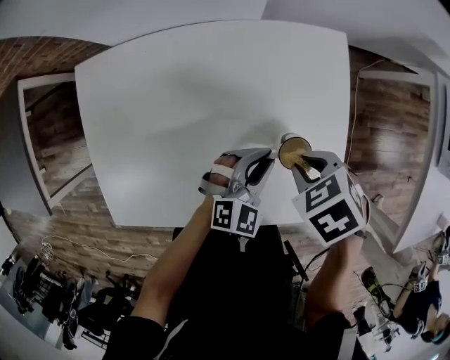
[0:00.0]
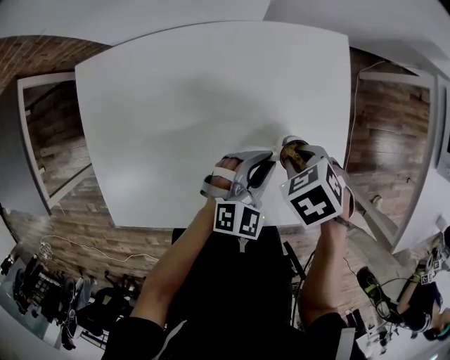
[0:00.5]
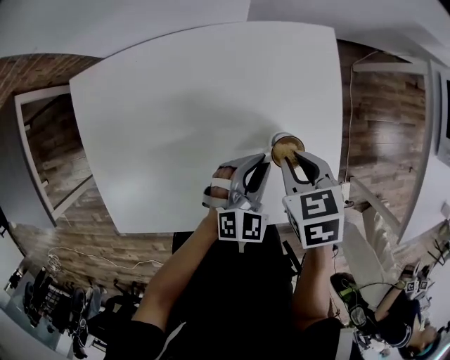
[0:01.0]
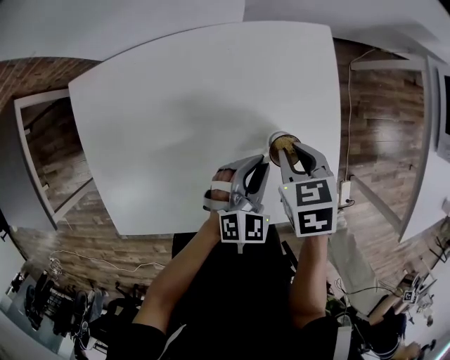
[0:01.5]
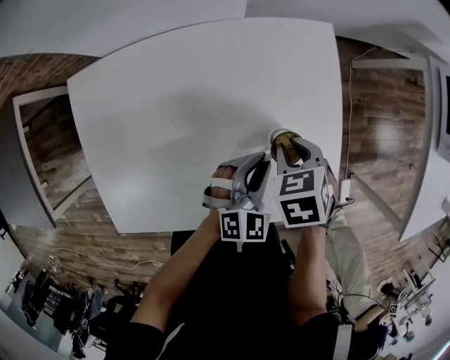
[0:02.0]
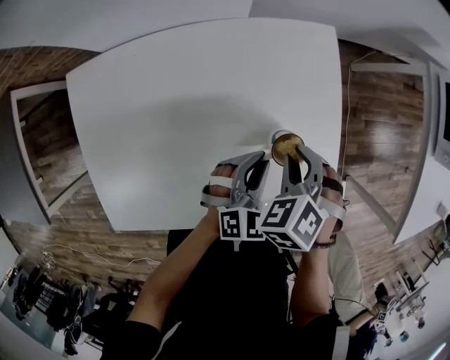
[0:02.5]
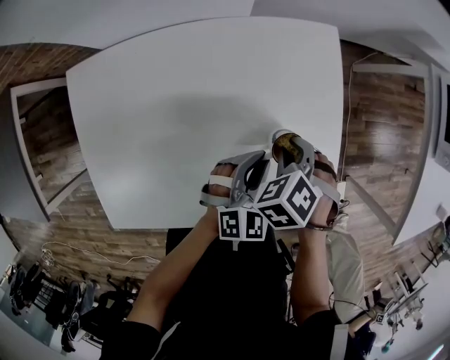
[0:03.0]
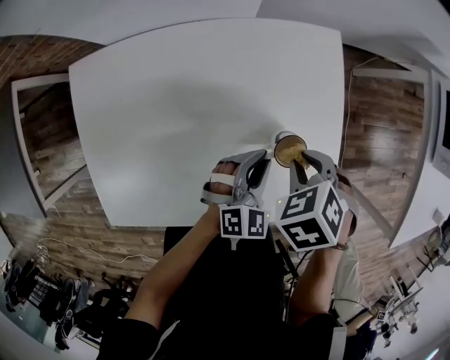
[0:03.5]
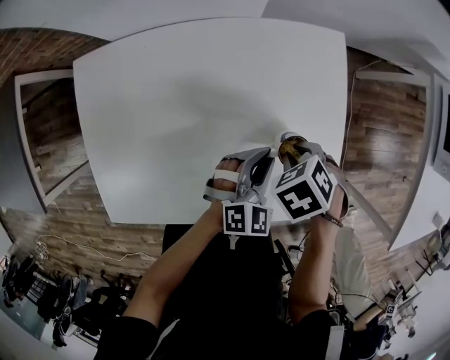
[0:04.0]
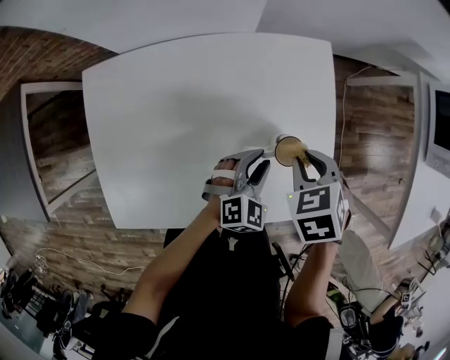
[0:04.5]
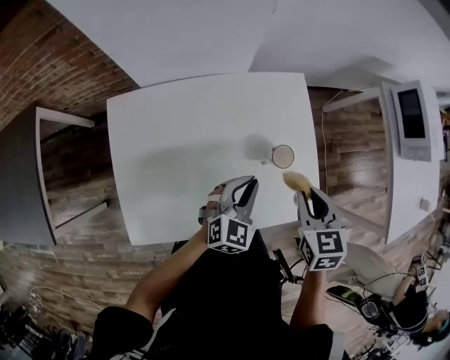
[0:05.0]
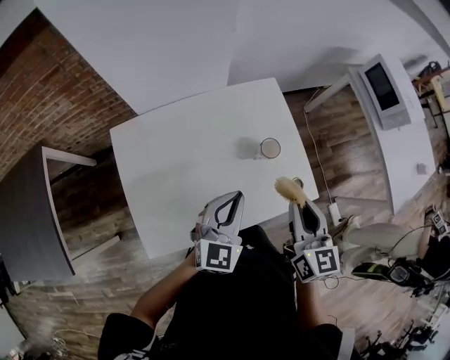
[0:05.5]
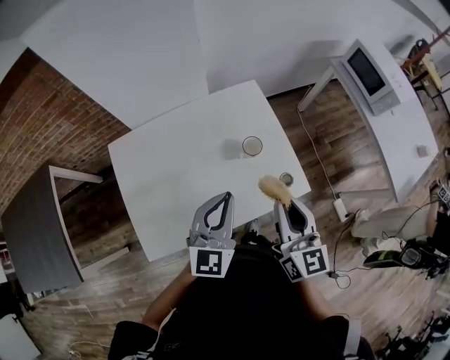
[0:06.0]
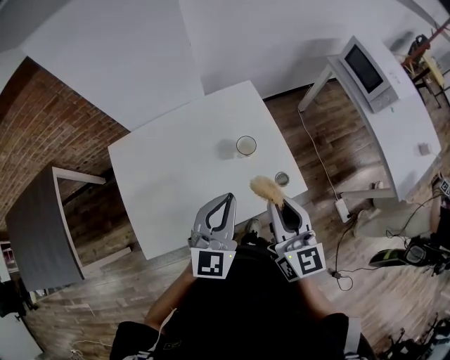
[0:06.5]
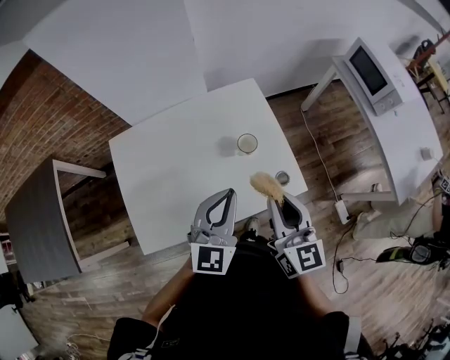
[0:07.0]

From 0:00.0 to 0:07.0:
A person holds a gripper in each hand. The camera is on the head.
From 0:00.0 to 0:02.0: The right gripper turns by approximately 30 degrees.
From 0:02.0 to 0:03.5: The right gripper swivels roughly 20 degrees.
From 0:03.5 to 0:05.0: Both grippers travel together upward, about 10 cm. The right gripper angles its fingers upward, by about 40 degrees.
From 0:05.0 to 0:07.0: The left gripper moves upward and backward, some 20 cm, and turns by some 20 degrees. The right gripper shifts approximately 15 cm backward and upward, and points its fingers approximately 40 degrees further upward.

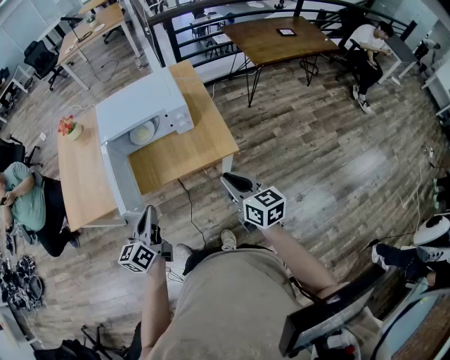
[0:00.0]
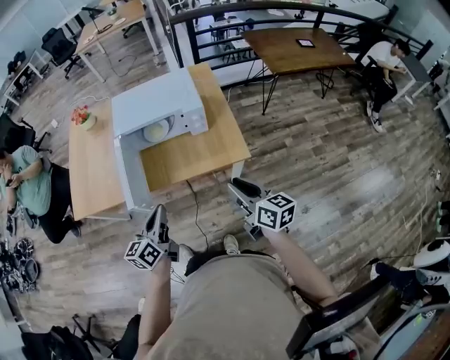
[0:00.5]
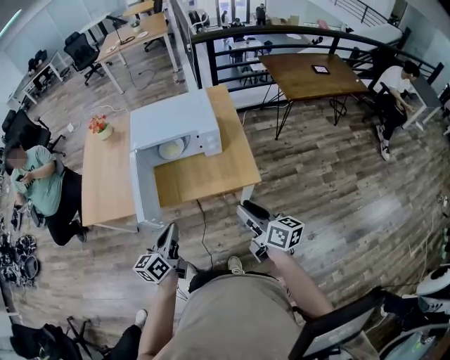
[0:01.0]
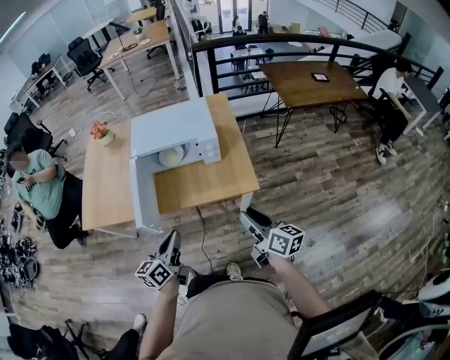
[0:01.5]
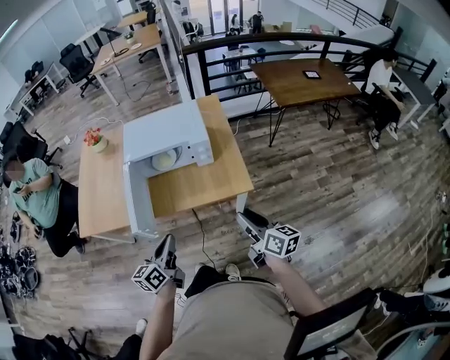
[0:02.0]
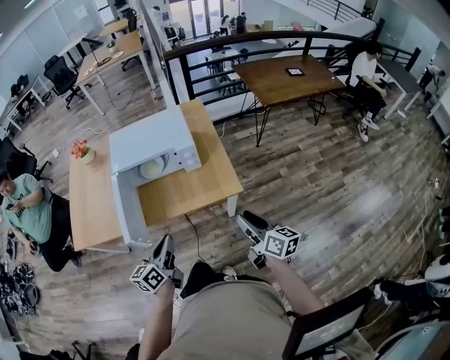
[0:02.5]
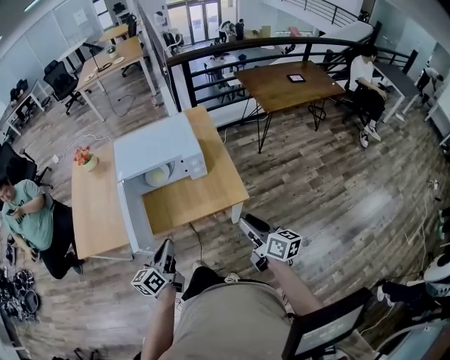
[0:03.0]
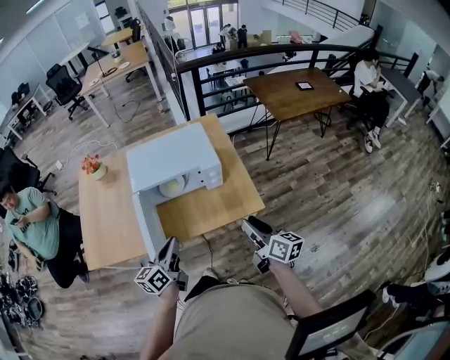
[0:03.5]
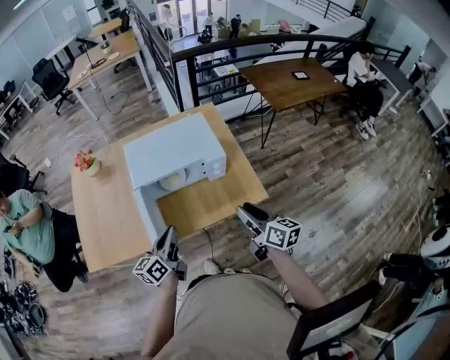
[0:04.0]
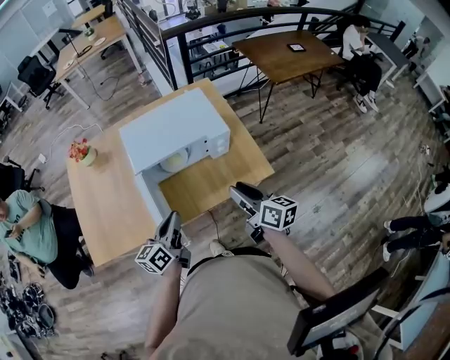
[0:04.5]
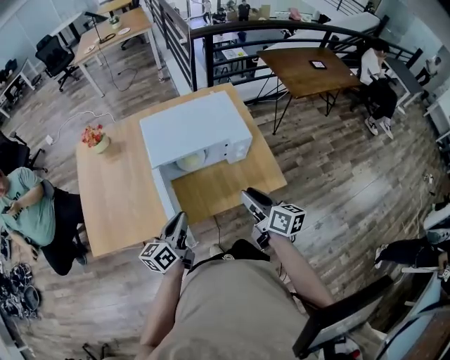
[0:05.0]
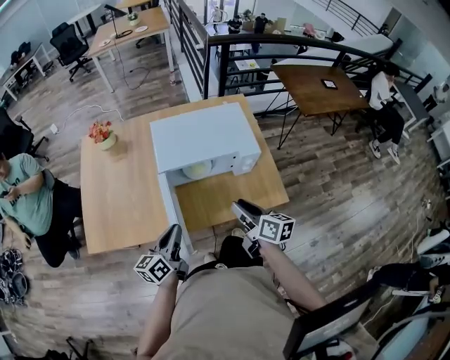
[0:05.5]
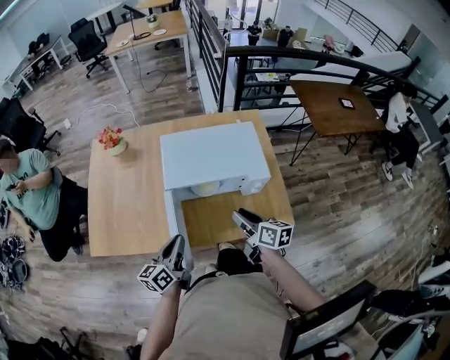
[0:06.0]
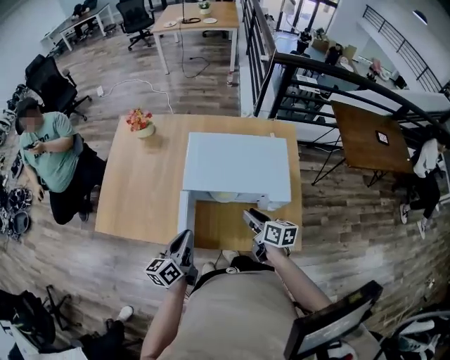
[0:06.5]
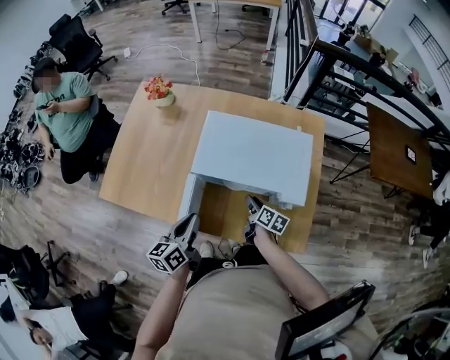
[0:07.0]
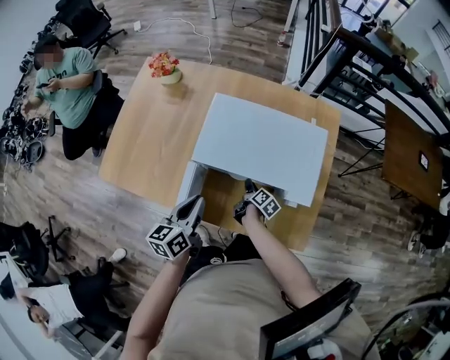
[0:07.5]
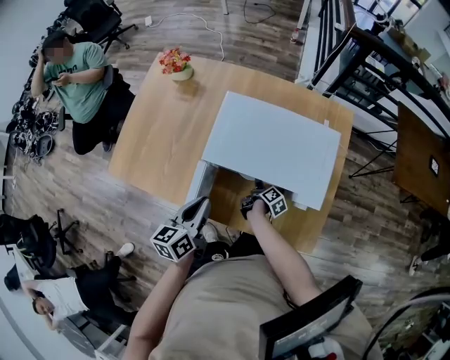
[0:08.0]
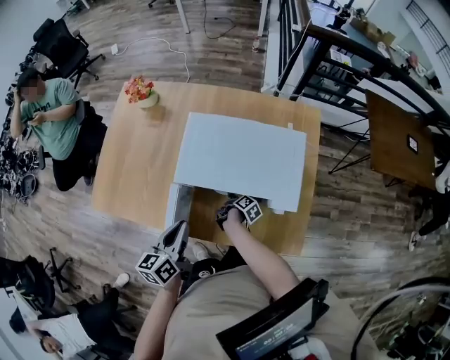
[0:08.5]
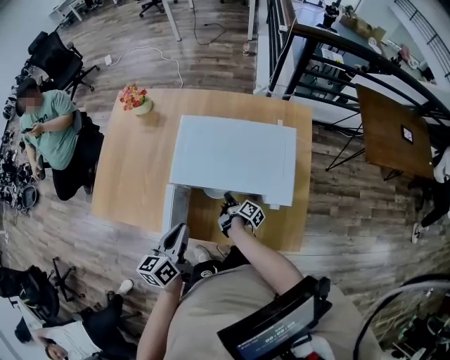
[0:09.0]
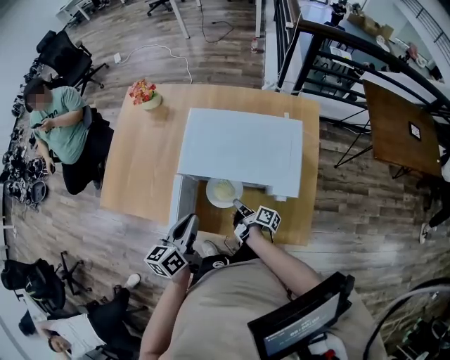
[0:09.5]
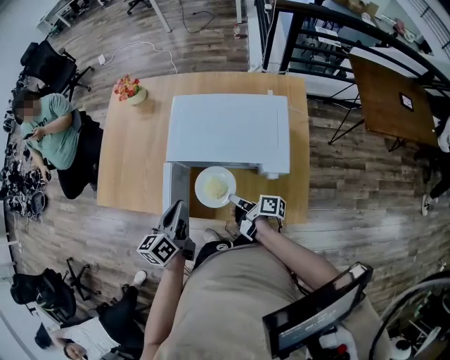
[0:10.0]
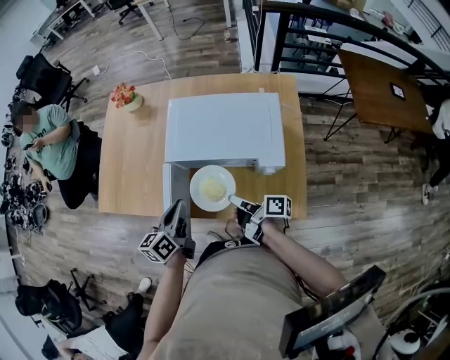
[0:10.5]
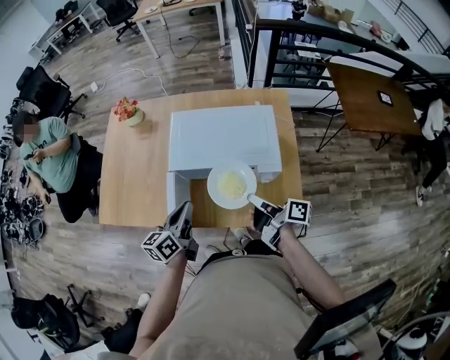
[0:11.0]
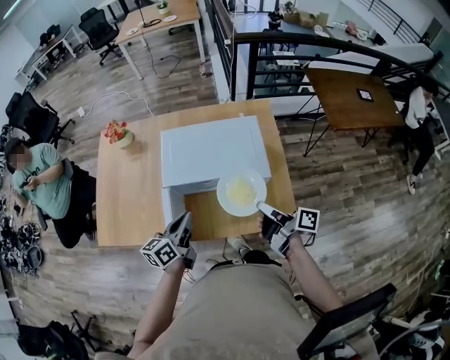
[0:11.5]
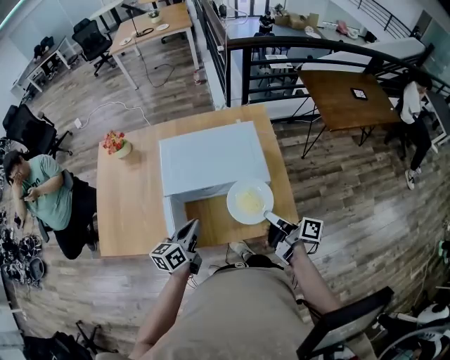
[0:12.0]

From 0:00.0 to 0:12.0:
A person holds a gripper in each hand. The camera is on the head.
From 0:02.0 to 0:04.0: The left gripper shifts about 20 cm forward and to the left. The right gripper shifts some 15 cm to the left and forward.
From 0:04.0 to 0:06.0: The left gripper shifts about 10 cm to the left, while the right gripper shifts approximately 20 cm to the left, forward and downward.
From 0:06.0 to 0:08.0: The left gripper goes some 10 cm forward, and turns by roughly 20 degrees; the right gripper travels downward and forward by roughly 35 cm, and rotates roughly 40 degrees.
From 0:08.0 to 0:10.0: The right gripper goes approximately 20 cm upward and backward, swivels roughly 40 degrees, and closes up.
From 0:10.0 to 0:12.0: The right gripper is displaced upward and to the right by about 20 cm, and turns by approximately 30 degrees. The left gripper turns by some 30 degrees.

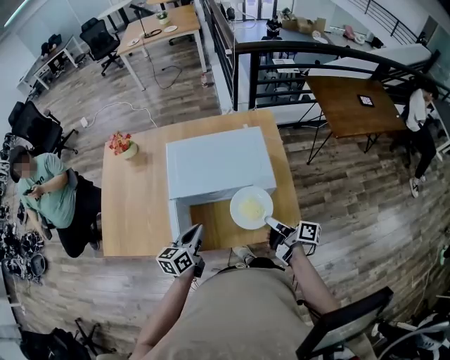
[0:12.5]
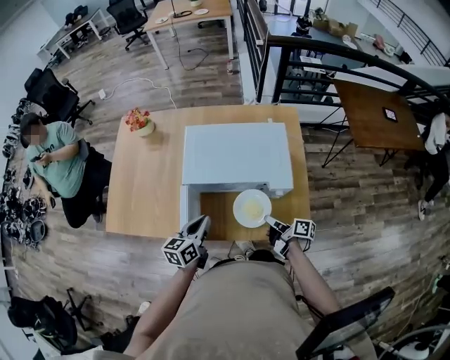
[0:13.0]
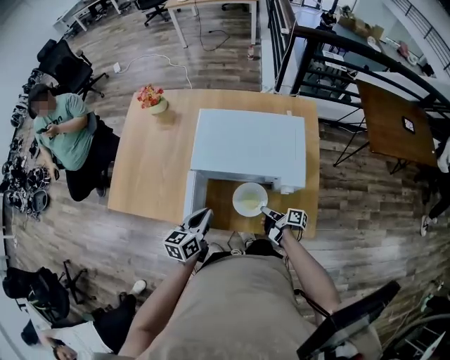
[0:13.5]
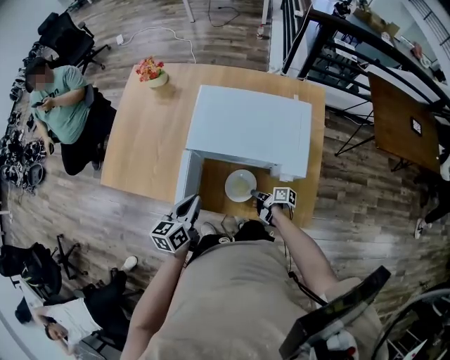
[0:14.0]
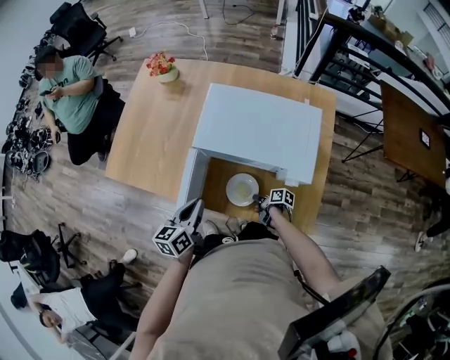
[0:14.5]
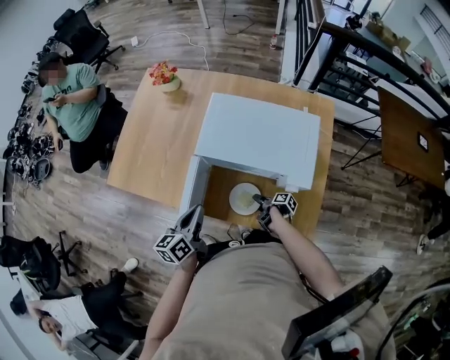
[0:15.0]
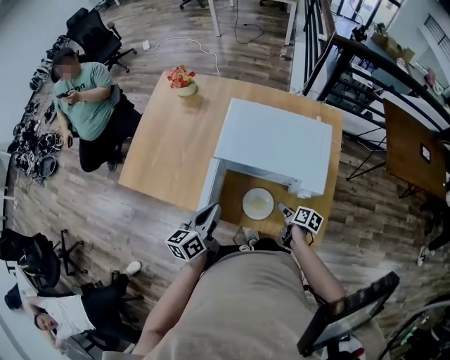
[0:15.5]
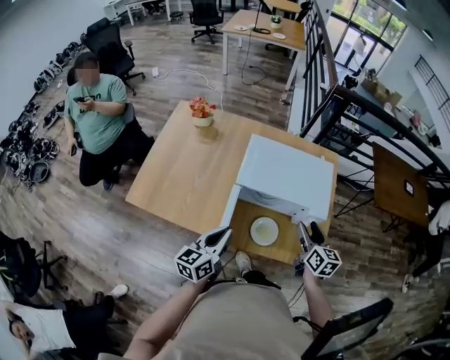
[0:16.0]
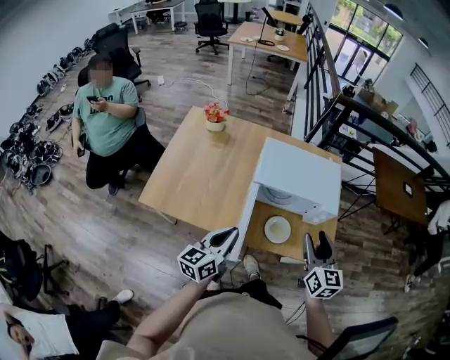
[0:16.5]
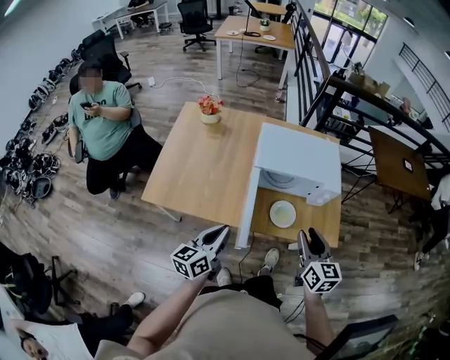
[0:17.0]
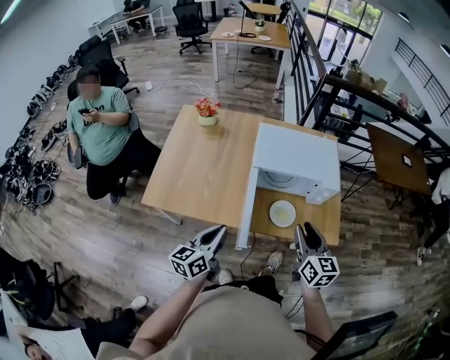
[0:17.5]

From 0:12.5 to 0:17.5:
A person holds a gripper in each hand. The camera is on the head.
From 0:12.5 to 0:15.0: The left gripper ends up about 10 cm from where it was, and changes its angle by about 30 degrees. Meanwhile the right gripper moves downward, roughly 30 cm, angles its fingers downward, by about 30 degrees, and opens its fingers.
From 0:15.0 to 0:17.5: The left gripper changes place by roughly 20 cm, and rotates approximately 20 degrees, while the right gripper moves upward, some 40 cm, swivels roughly 90 degrees, and closes.

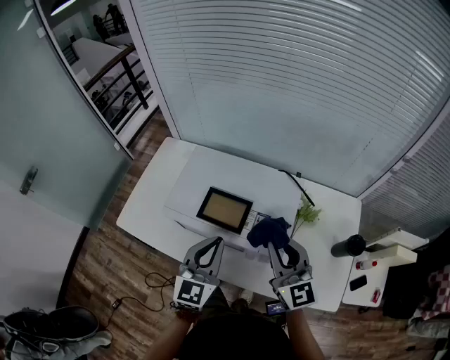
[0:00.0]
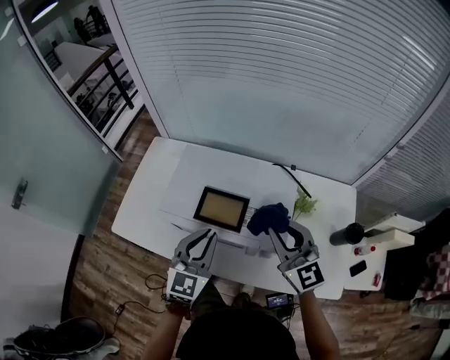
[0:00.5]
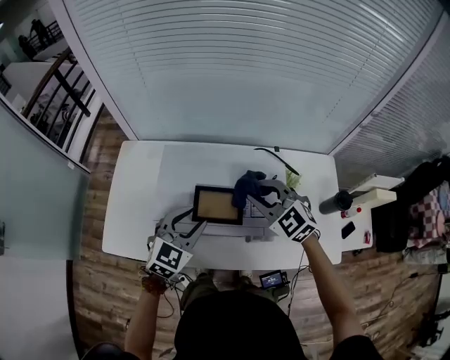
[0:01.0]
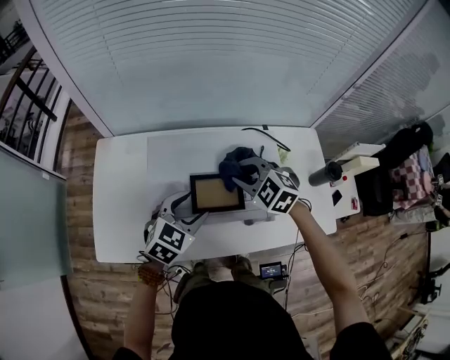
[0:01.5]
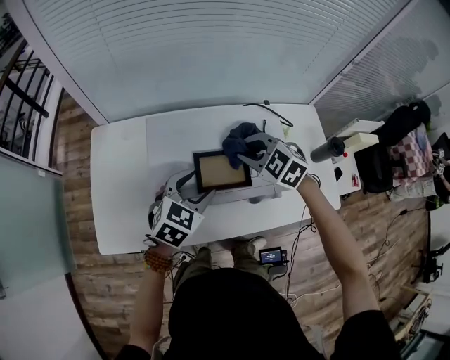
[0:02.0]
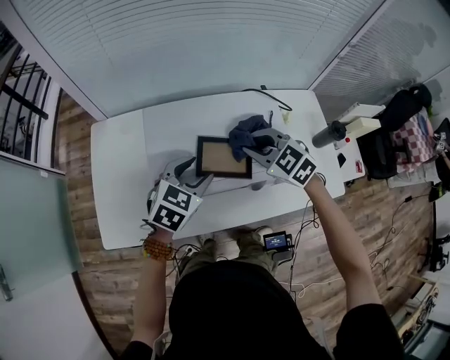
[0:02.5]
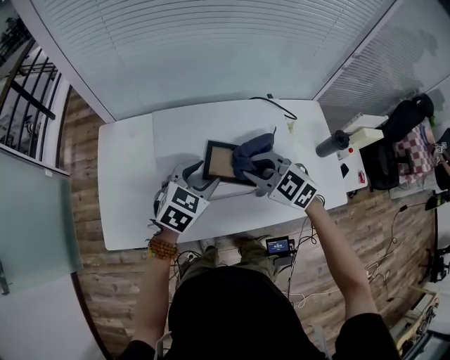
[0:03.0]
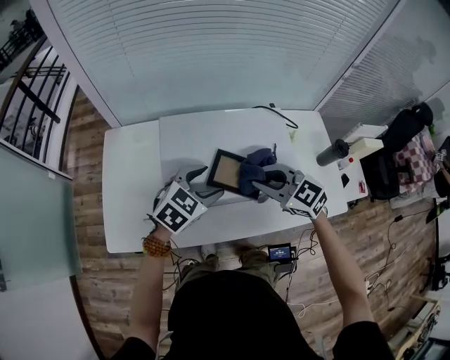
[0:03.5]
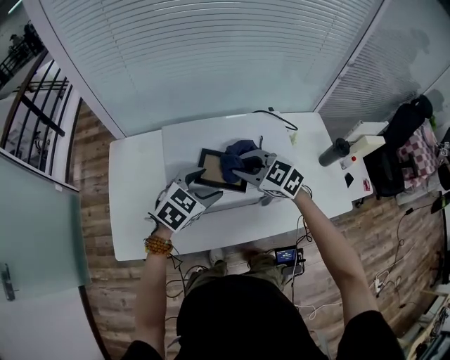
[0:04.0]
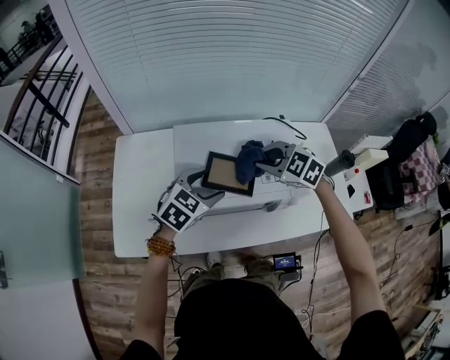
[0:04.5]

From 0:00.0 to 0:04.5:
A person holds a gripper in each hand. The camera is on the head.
From 0:00.0 to 0:02.0: The two grippers go approximately 15 cm forward, to the left and downward. The left gripper turns by approximately 50 degrees, and opens up; the right gripper angles its fingers downward, by some 50 degrees.
From 0:02.0 to 0:04.5: The right gripper travels backward and back again, roughly 10 cm each way.
